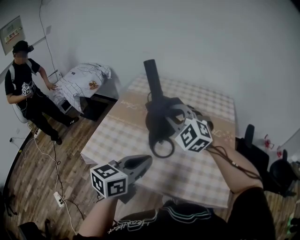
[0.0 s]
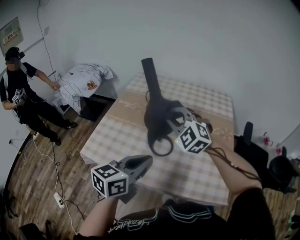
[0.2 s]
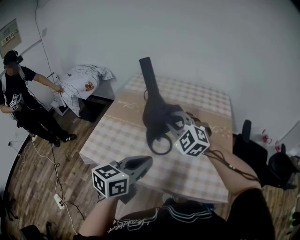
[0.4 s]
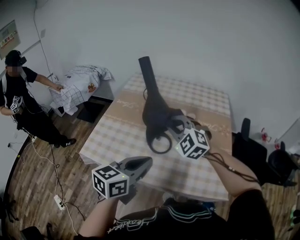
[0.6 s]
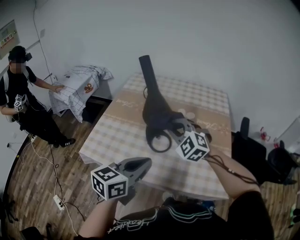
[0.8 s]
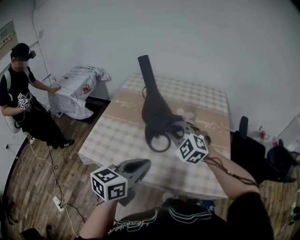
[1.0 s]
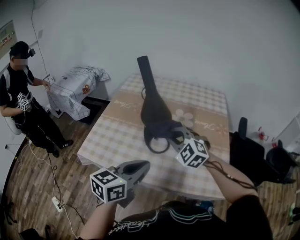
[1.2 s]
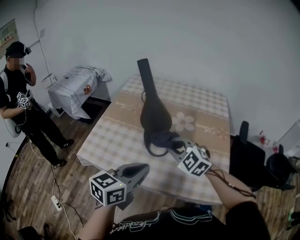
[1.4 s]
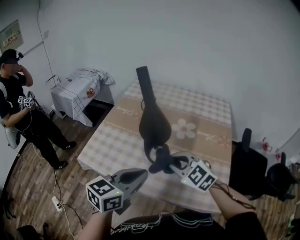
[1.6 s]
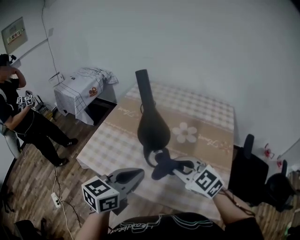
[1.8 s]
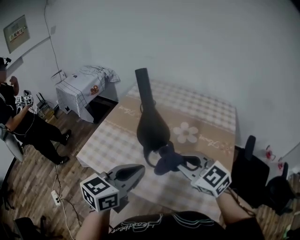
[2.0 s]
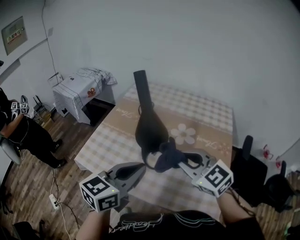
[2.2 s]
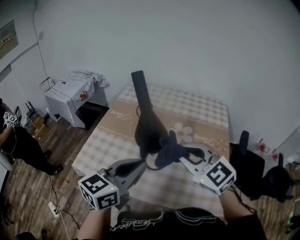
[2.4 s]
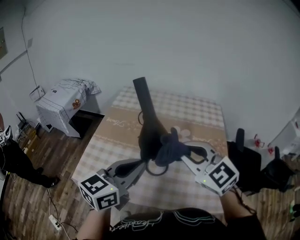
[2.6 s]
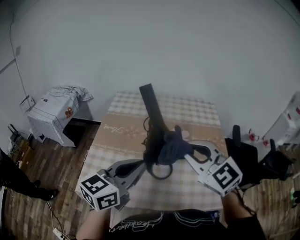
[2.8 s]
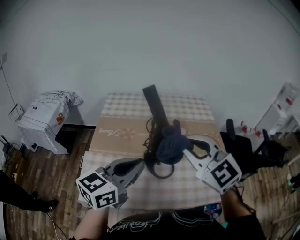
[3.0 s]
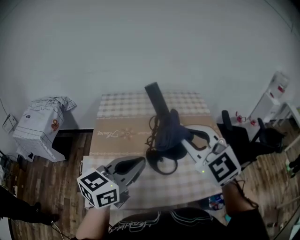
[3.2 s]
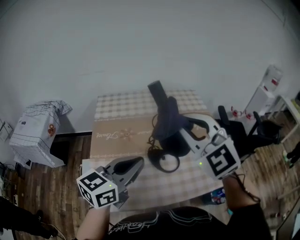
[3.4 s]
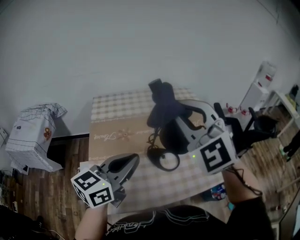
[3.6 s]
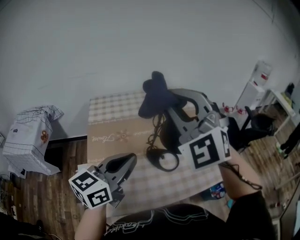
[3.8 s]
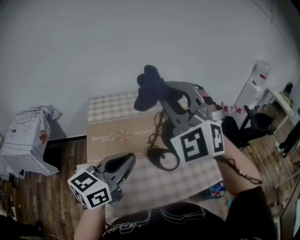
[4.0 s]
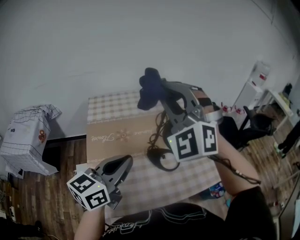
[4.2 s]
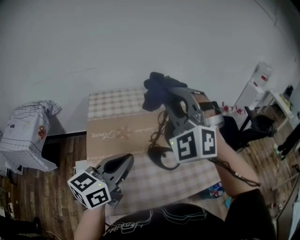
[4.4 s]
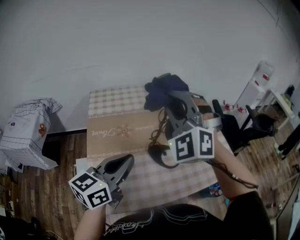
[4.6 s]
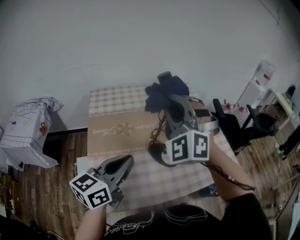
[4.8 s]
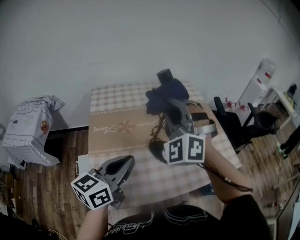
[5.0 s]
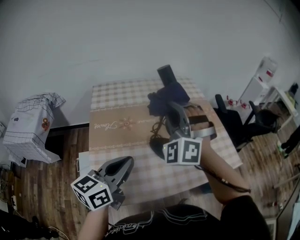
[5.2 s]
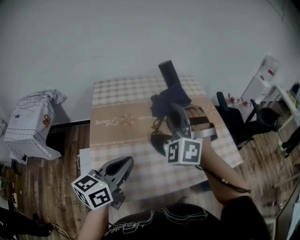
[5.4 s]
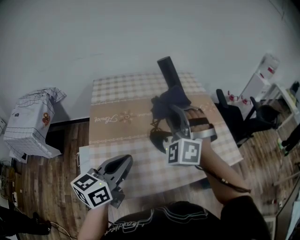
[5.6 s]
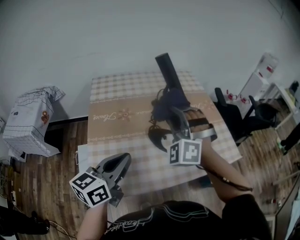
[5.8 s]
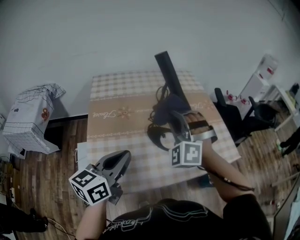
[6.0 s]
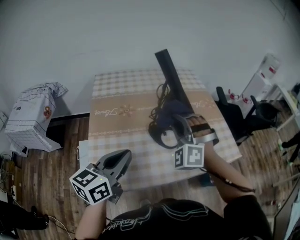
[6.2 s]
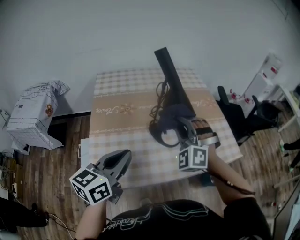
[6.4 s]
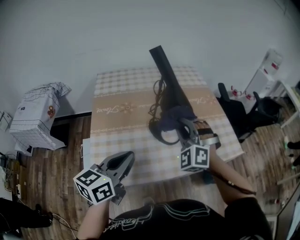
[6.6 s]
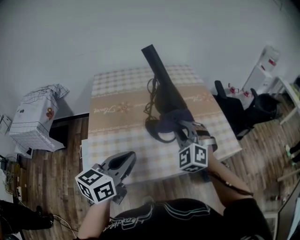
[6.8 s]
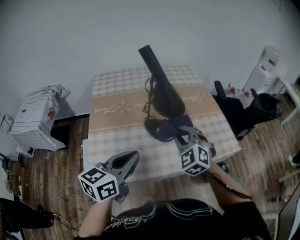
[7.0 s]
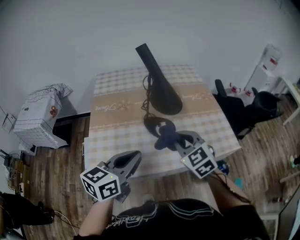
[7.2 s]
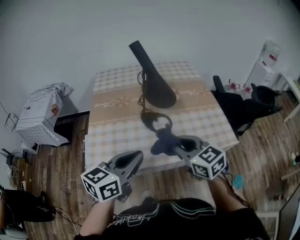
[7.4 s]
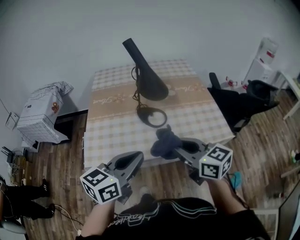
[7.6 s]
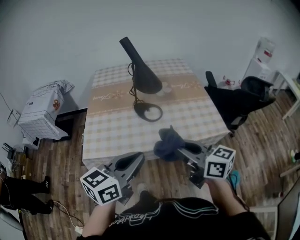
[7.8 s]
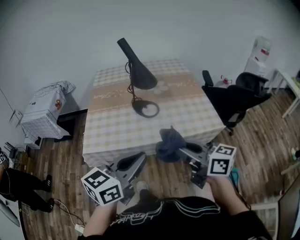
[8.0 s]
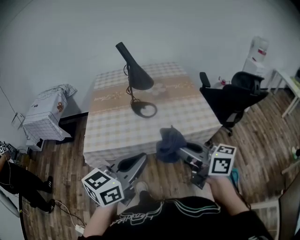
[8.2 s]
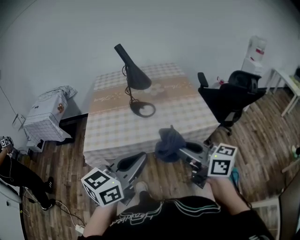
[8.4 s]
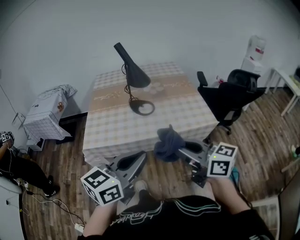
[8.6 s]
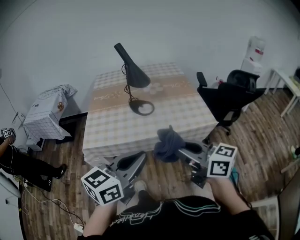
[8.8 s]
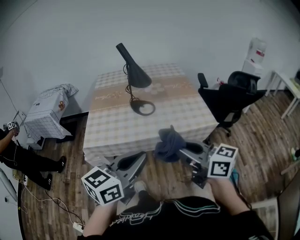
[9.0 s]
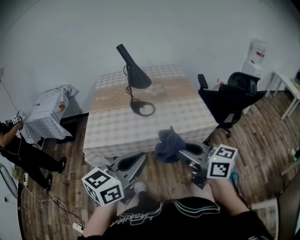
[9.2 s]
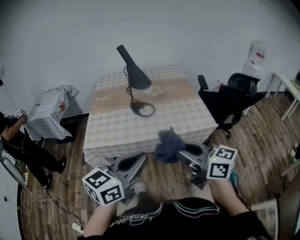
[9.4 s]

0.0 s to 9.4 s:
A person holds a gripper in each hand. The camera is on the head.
0.0 to 1.6 s: The right gripper moves backward, downward and to the right, some 15 cm, and rotates approximately 30 degrees.
1.6 to 3.2 s: The right gripper shifts about 20 cm upward, and changes its angle by roughly 40 degrees, while the left gripper shifts by some 20 cm, and swivels approximately 30 degrees.
3.2 to 4.8 s: The right gripper travels to the left and forward by about 10 cm, and turns by roughly 40 degrees, while the left gripper is displaced to the left by some 10 cm.
4.8 to 6.2 s: The right gripper goes some 15 cm downward and to the right. Meanwhile the left gripper heads backward, covering roughly 5 cm.
6.2 to 7.8 s: The left gripper moves to the right and backward, about 30 cm, while the right gripper heads backward and to the right, covering some 35 cm, and rolls clockwise, seen from behind, by roughly 90 degrees.
7.8 to 9.4 s: The grippers both shift backward by about 15 cm.

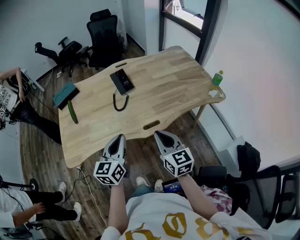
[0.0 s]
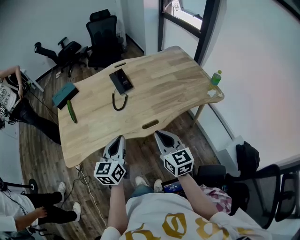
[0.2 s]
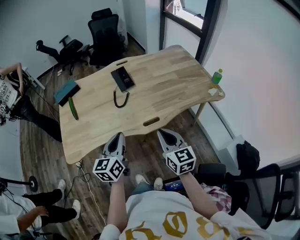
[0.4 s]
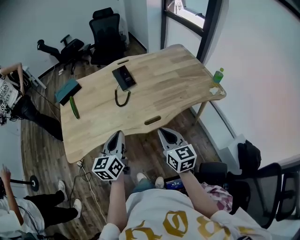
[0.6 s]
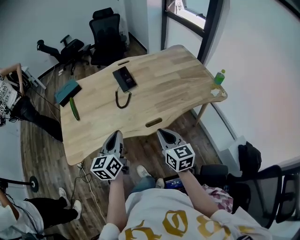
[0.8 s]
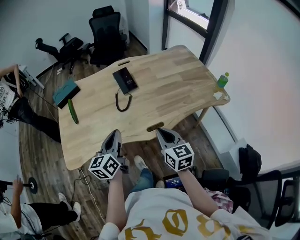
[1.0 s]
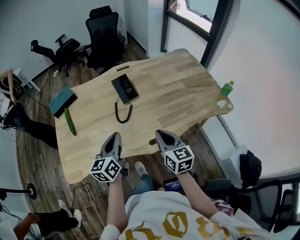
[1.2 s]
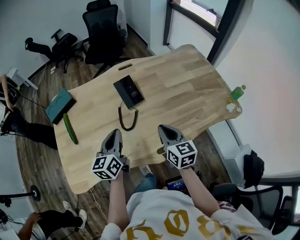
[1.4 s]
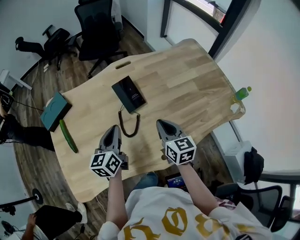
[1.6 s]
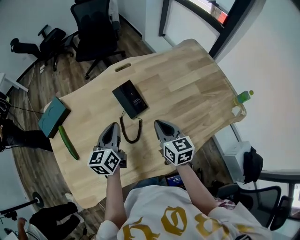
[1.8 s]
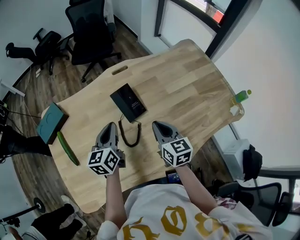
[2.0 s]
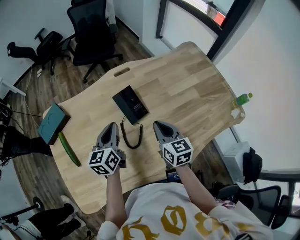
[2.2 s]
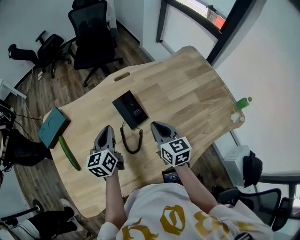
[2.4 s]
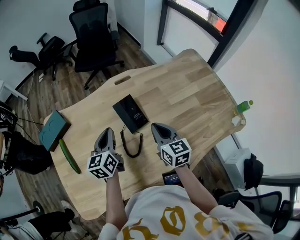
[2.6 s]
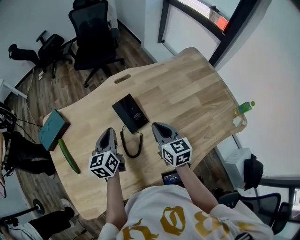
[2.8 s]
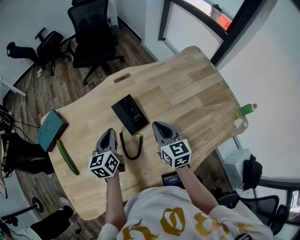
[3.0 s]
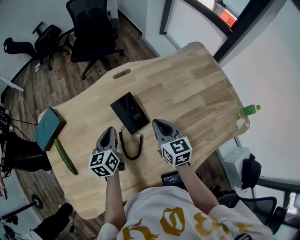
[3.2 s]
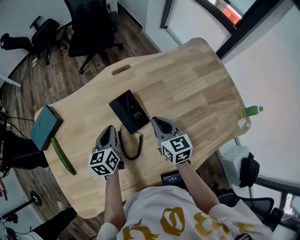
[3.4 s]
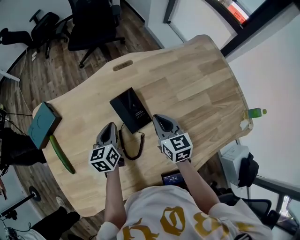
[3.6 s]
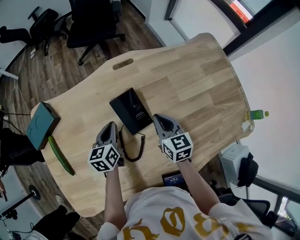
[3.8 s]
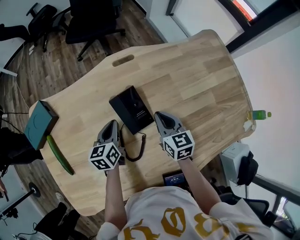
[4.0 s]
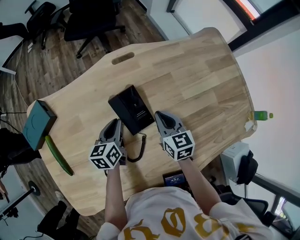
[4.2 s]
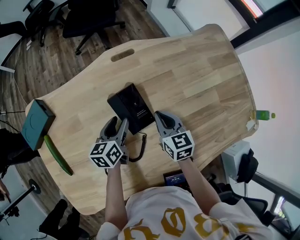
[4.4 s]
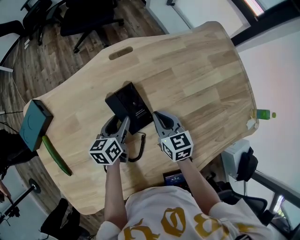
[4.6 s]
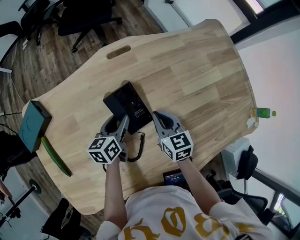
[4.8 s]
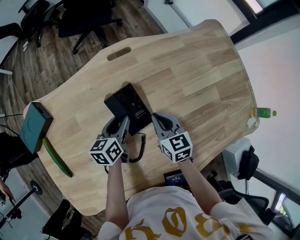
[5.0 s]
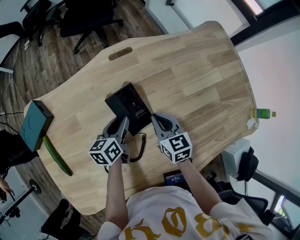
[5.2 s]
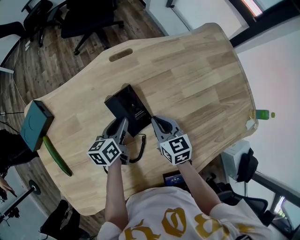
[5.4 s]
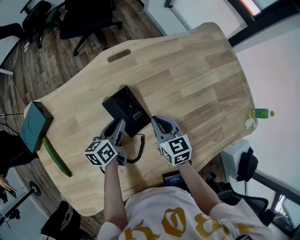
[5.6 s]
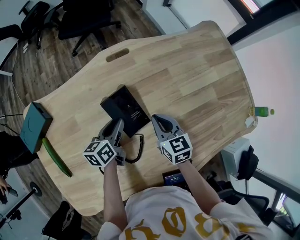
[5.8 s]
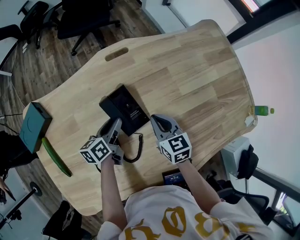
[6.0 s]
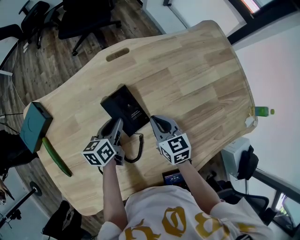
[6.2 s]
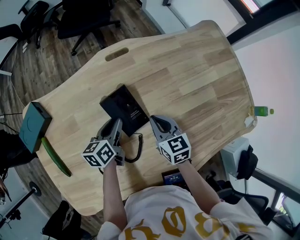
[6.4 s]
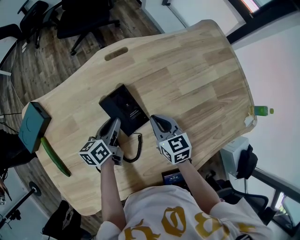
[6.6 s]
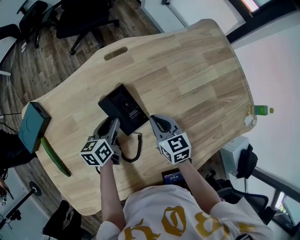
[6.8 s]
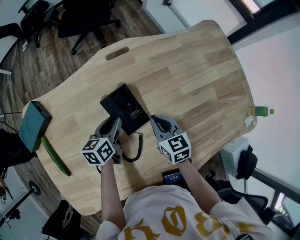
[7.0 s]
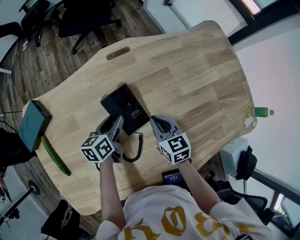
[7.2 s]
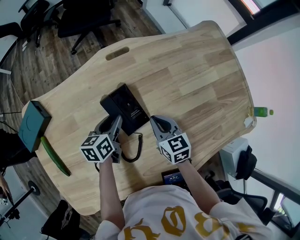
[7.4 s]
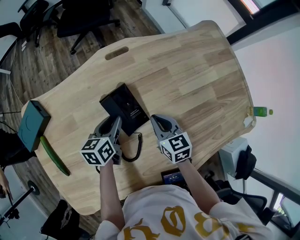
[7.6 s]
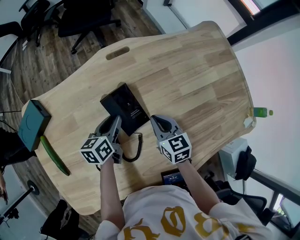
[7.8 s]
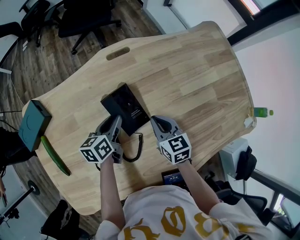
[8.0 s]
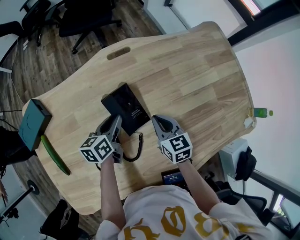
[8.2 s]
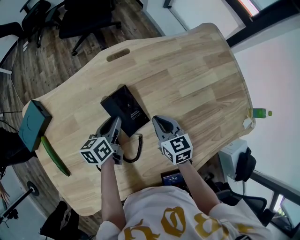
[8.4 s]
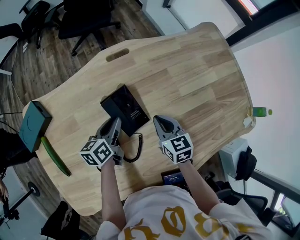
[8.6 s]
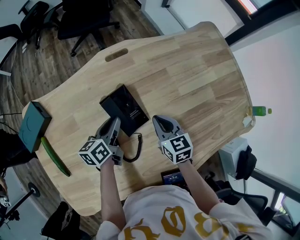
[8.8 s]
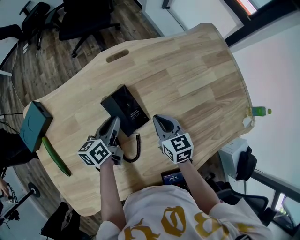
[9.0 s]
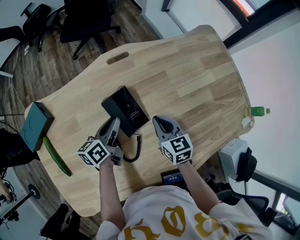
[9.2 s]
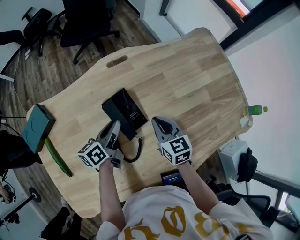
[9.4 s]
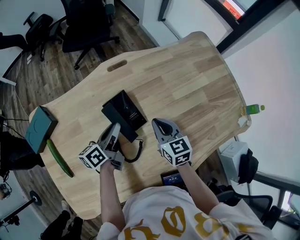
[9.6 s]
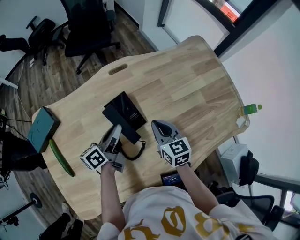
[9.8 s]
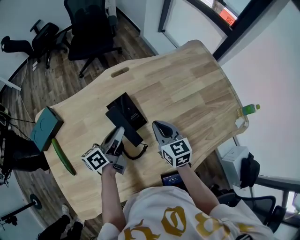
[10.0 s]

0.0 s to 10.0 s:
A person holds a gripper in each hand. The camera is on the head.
0.0 to 1.4 s: The two grippers go about 20 cm forward.
1.4 to 2.8 s: Both grippers travel together forward, some 20 cm.
2.8 to 4.2 s: The grippers both shift downward and forward by roughly 15 cm.
4.2 to 5.8 s: The left gripper opens and closes again.
5.8 to 8.6 s: The grippers make only small movements.
8.6 to 10.0 s: The grippers both shift upward by approximately 10 cm. The left gripper turns by approximately 20 degrees.

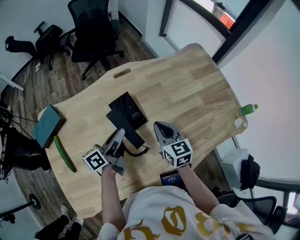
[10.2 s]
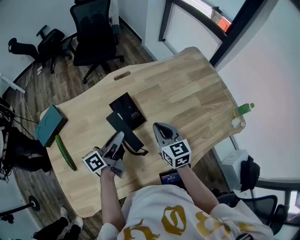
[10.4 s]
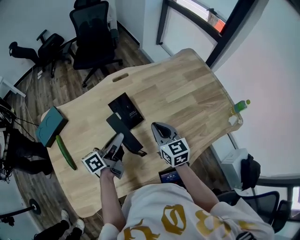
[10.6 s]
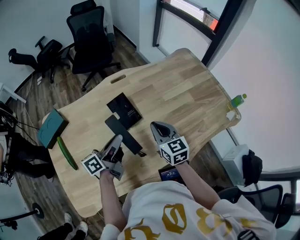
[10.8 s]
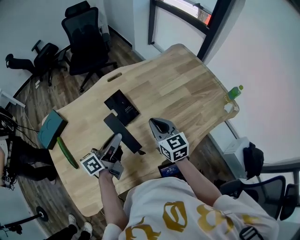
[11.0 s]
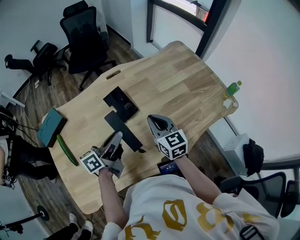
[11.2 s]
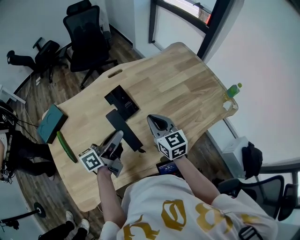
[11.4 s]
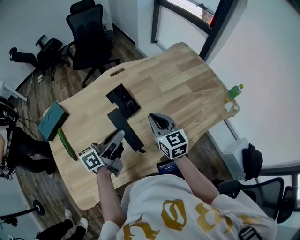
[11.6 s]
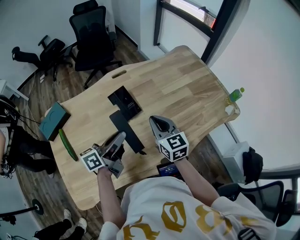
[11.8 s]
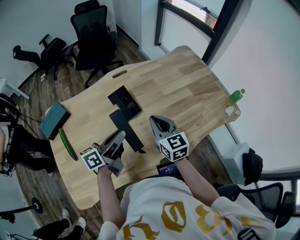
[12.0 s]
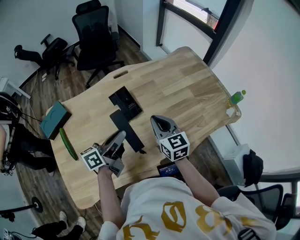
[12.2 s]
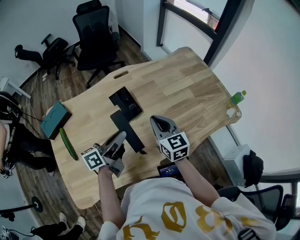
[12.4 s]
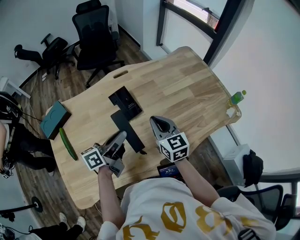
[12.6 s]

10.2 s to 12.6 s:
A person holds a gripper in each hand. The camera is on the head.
10.2 to 11.4 s: The two grippers go approximately 10 cm backward and upward.
11.4 to 12.6 s: Neither gripper changes place.

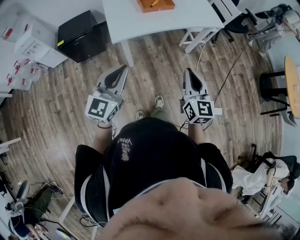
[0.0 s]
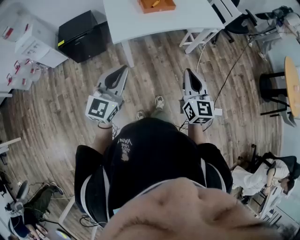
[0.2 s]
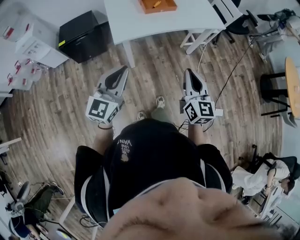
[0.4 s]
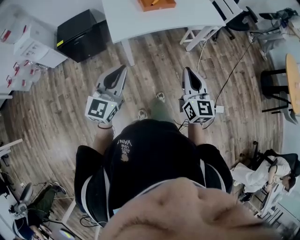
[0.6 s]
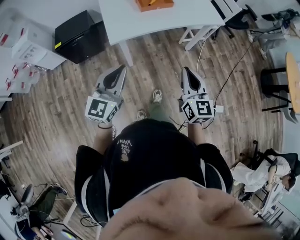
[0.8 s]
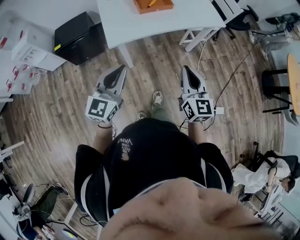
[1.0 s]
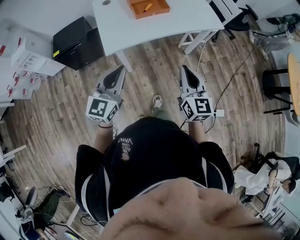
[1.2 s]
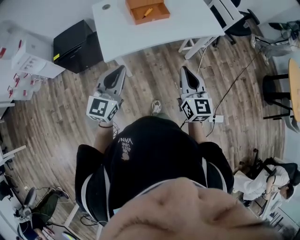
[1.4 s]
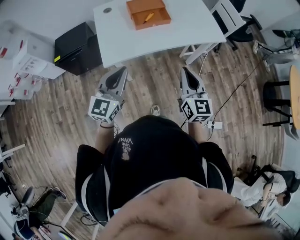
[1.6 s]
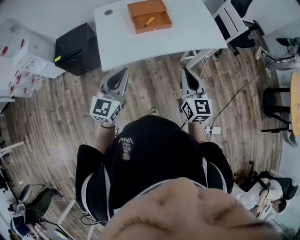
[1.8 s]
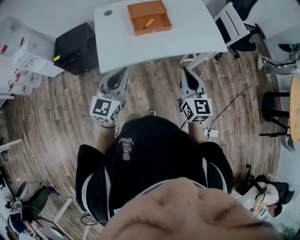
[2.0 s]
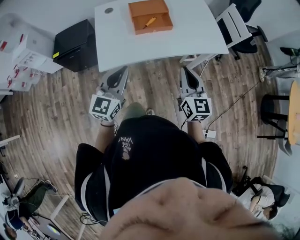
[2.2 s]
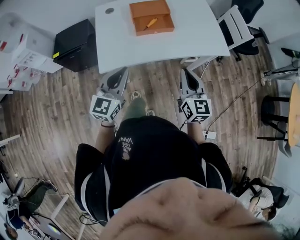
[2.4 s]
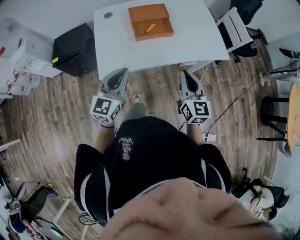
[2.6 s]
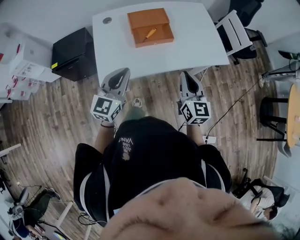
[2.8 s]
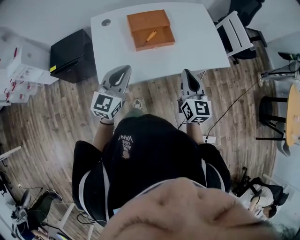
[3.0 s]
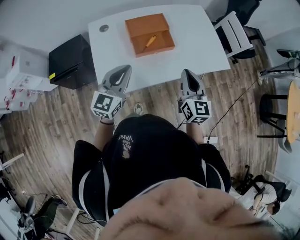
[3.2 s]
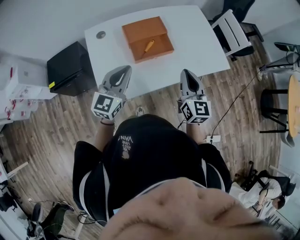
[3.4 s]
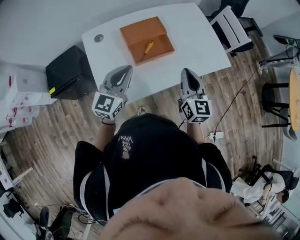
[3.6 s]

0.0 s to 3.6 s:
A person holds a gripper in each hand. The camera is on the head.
0.0 to 1.8 s: The grippers both shift forward by some 20 cm.
1.8 to 3.6 s: Both grippers move forward, approximately 25 cm.
